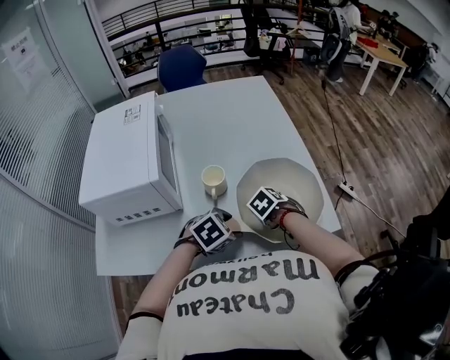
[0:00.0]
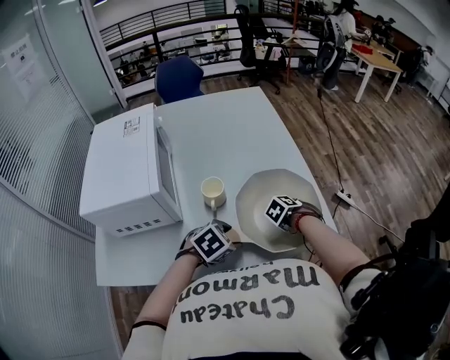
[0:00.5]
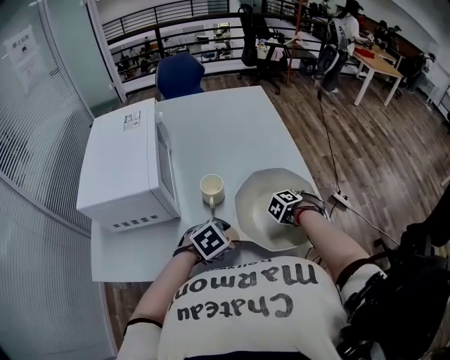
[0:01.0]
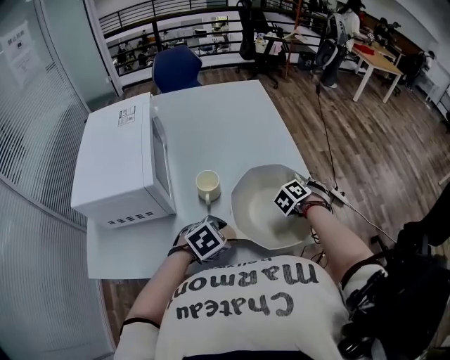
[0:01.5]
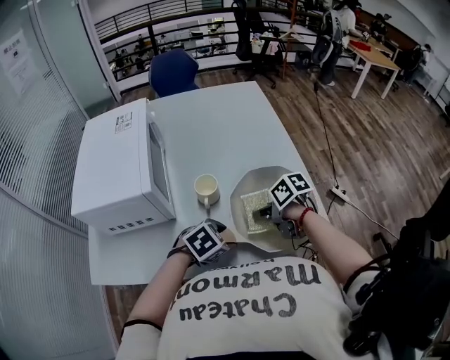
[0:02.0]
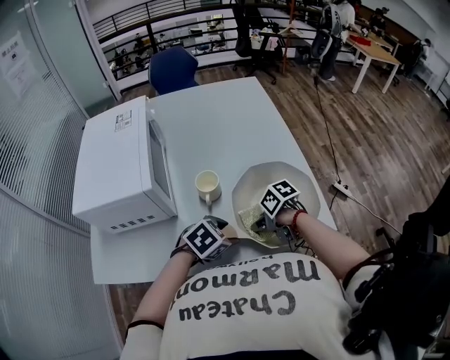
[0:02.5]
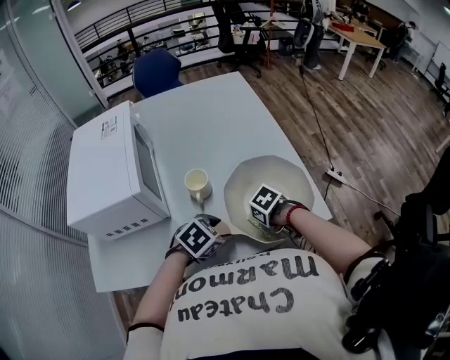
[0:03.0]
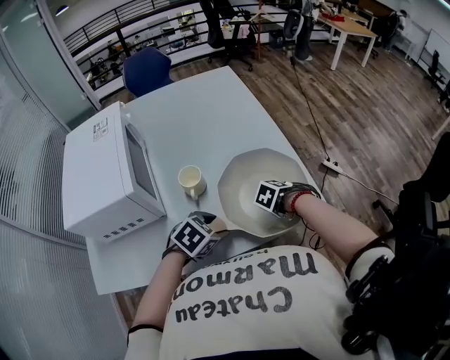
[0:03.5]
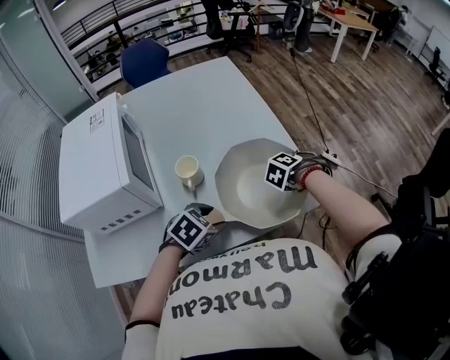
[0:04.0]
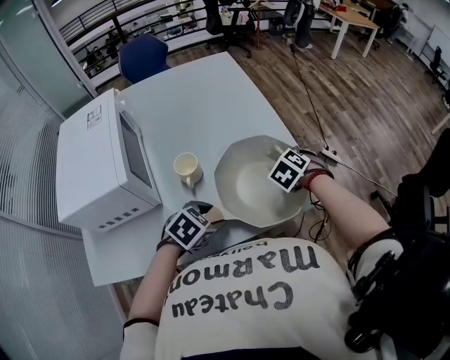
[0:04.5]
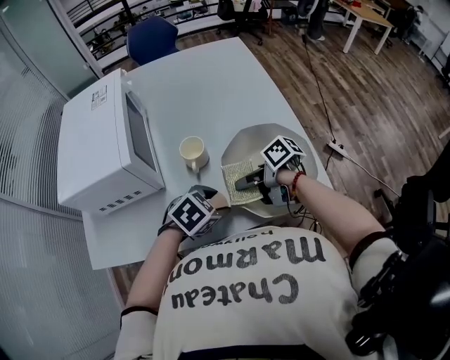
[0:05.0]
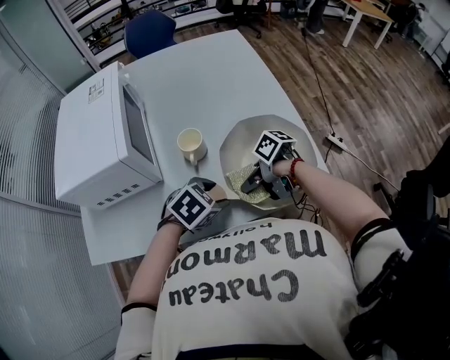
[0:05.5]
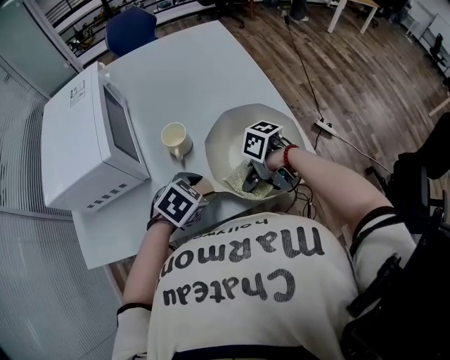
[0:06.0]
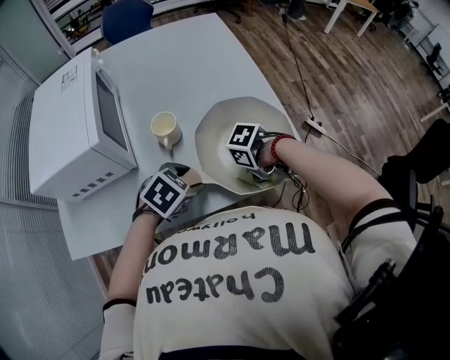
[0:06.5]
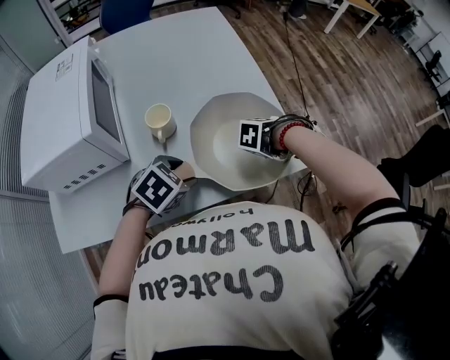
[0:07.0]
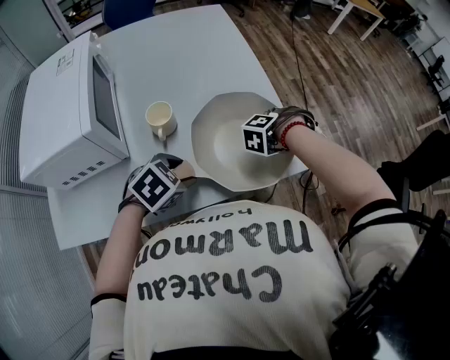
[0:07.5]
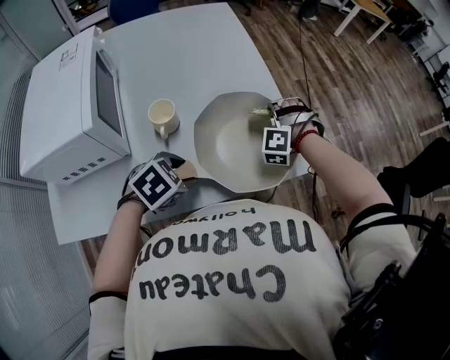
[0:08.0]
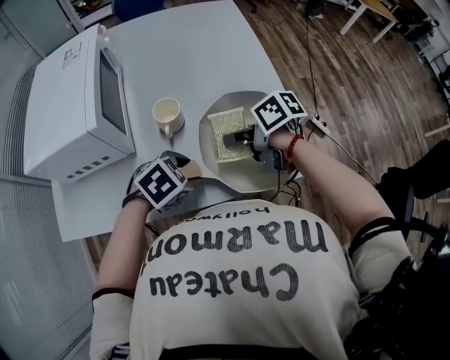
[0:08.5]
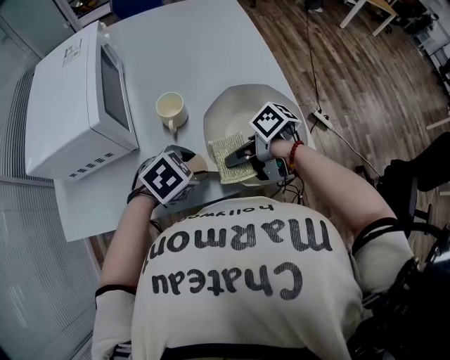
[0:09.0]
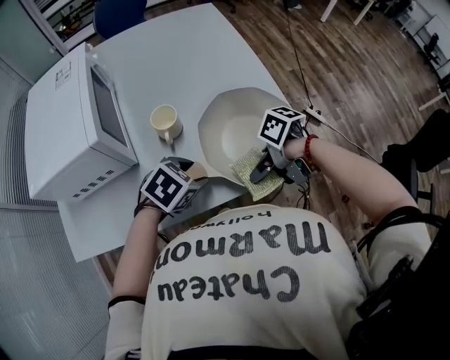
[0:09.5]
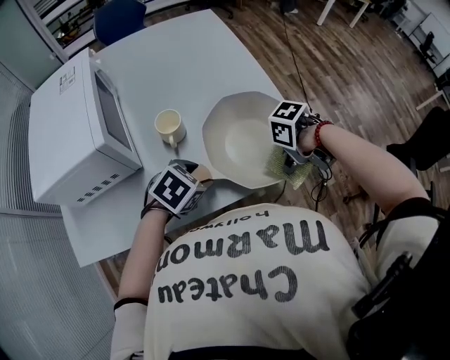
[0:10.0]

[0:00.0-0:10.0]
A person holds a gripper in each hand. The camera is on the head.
0:00.0 to 0:02.0: The right gripper travels upward by about 10 cm, and tips its fingers upward by some 30 degrees.
0:02.0 to 0:04.0: The right gripper ends up approximately 20 cm from where it was, and rotates roughly 80 degrees.
0:04.0 to 0:06.0: The right gripper changes place by approximately 25 cm, and rotates approximately 80 degrees.
0:06.0 to 0:08.0: The right gripper shifts by some 25 cm, and turns by some 130 degrees.
0:08.0 to 0:10.0: The right gripper moves approximately 20 cm, and turns by approximately 110 degrees.

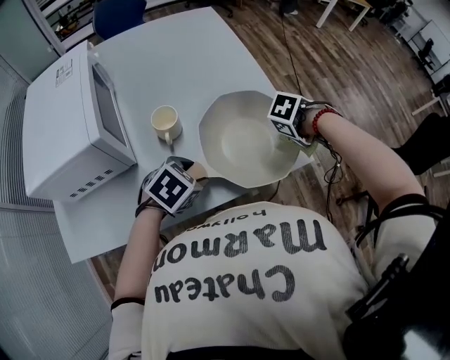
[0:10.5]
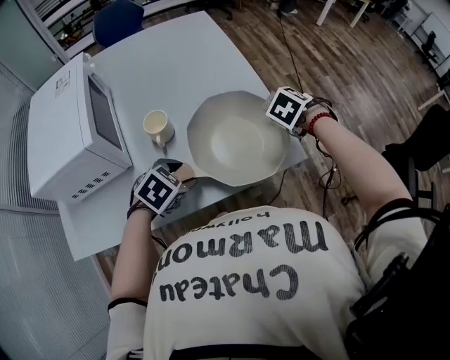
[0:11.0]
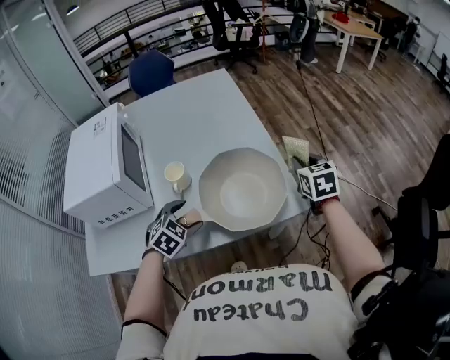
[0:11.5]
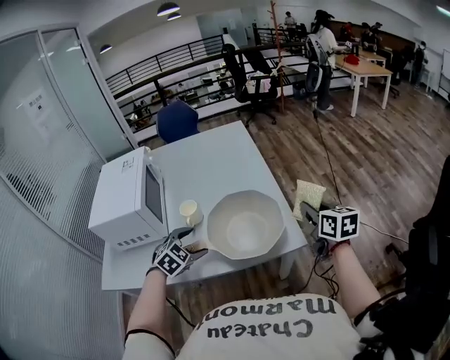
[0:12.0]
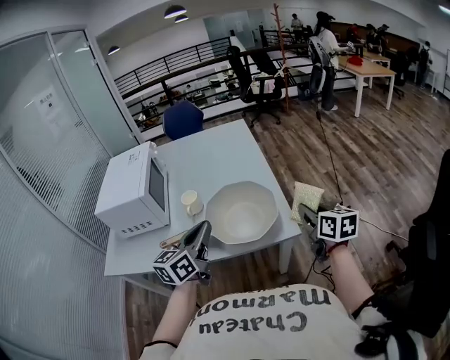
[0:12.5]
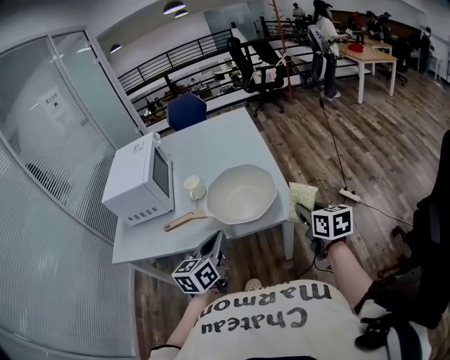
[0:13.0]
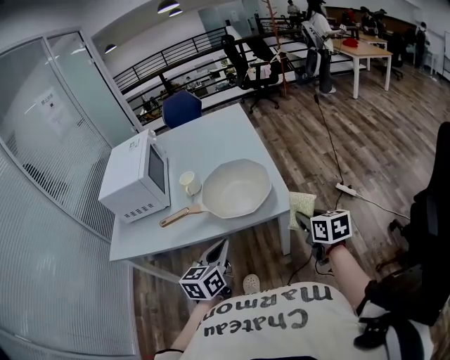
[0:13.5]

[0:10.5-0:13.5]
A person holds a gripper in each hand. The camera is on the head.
0:10.5 to 0:12.0: The right gripper is displaced upward by roughly 15 cm, and points its fingers about 50 degrees further upward; the left gripper is displaced upward by about 5 cm, rotates some 30 degrees, and opens.
0:12.0 to 0:13.5: The left gripper moves backward and to the right, roughly 25 cm, twists some 50 degrees counterclockwise, seen from behind, and closes its fingers; the right gripper shifts some 20 cm backward and downward.

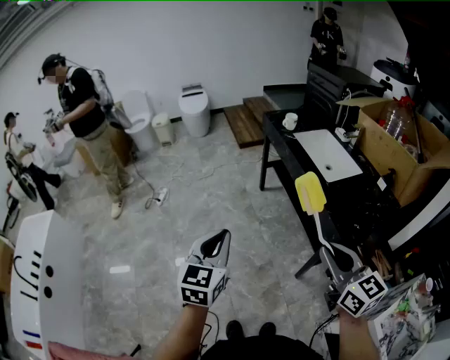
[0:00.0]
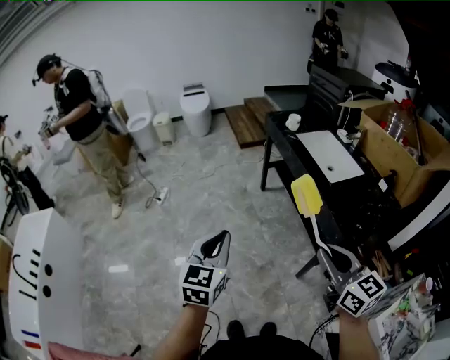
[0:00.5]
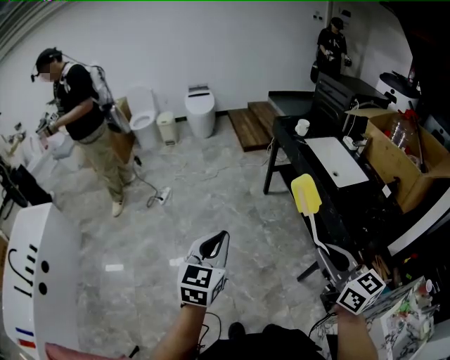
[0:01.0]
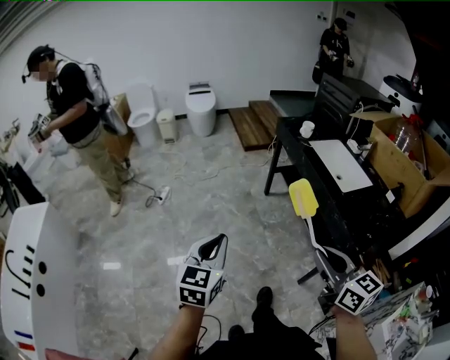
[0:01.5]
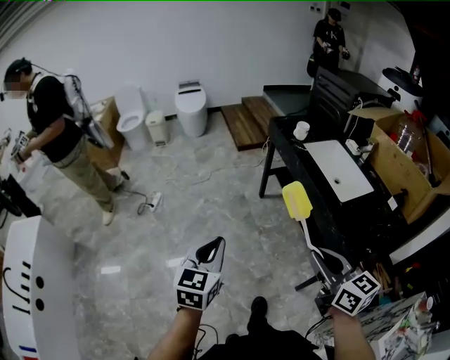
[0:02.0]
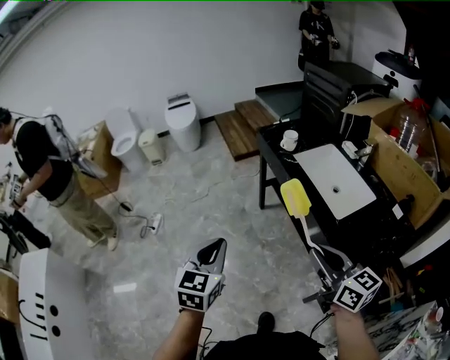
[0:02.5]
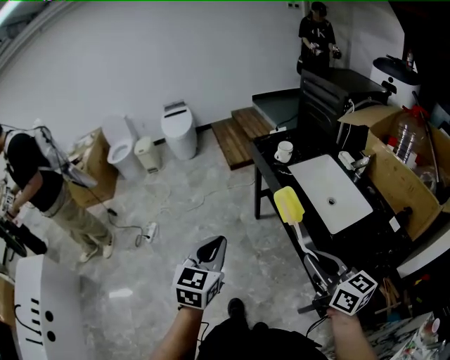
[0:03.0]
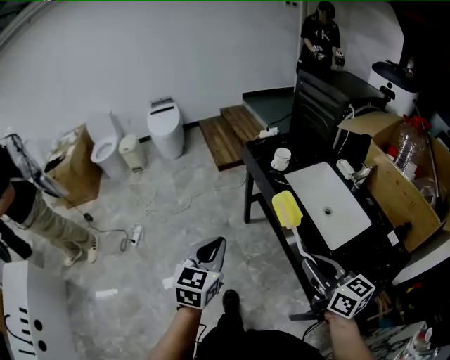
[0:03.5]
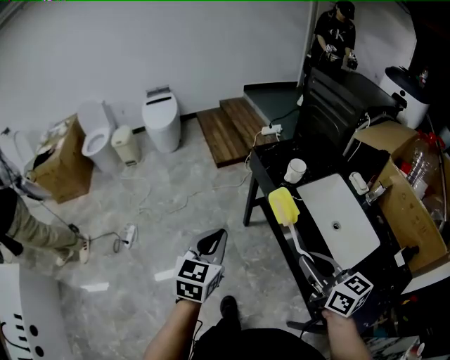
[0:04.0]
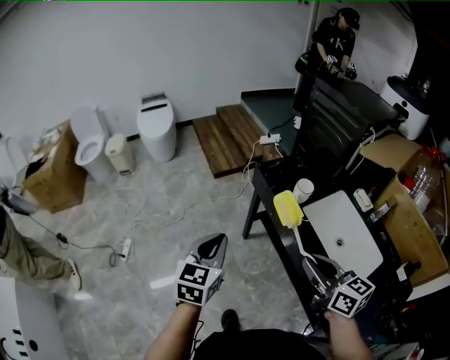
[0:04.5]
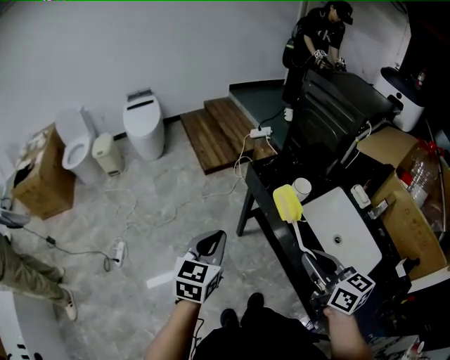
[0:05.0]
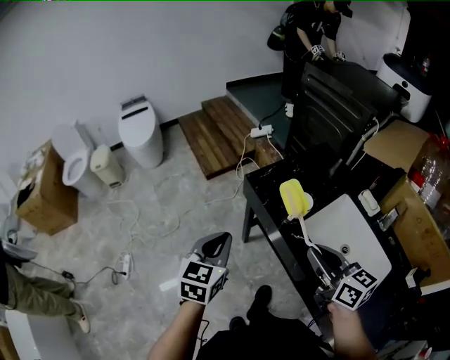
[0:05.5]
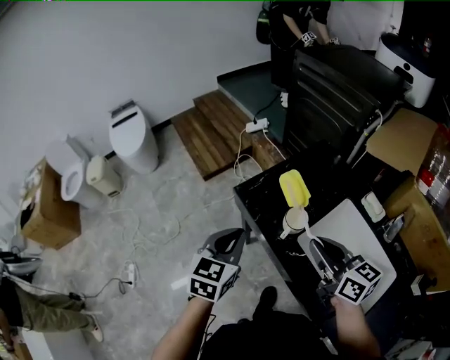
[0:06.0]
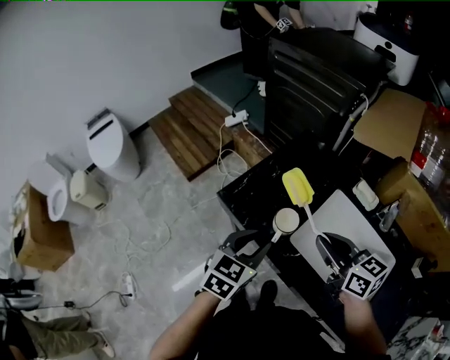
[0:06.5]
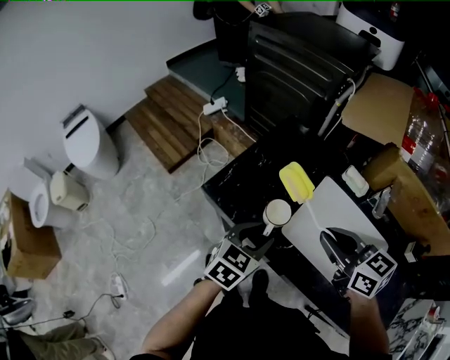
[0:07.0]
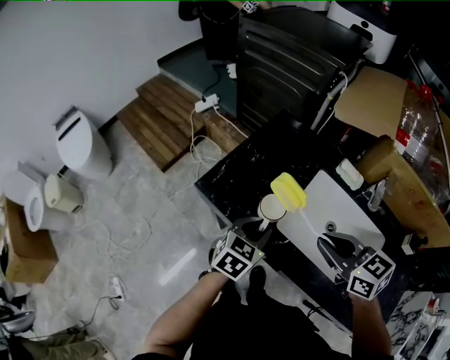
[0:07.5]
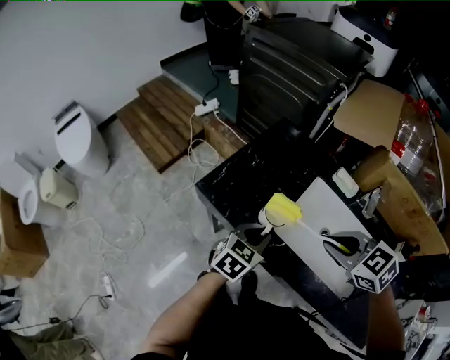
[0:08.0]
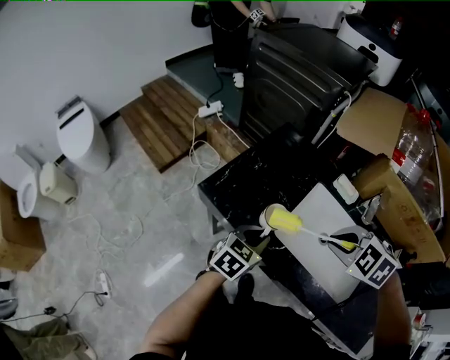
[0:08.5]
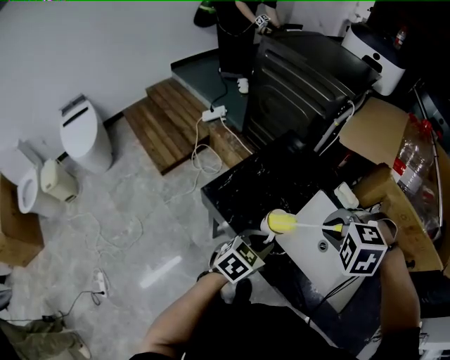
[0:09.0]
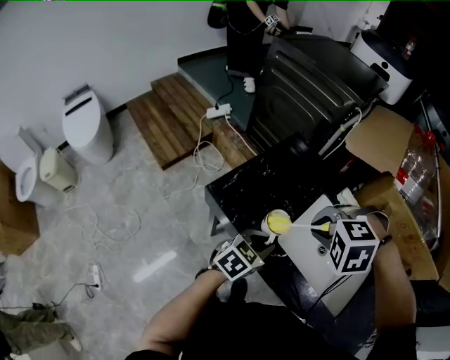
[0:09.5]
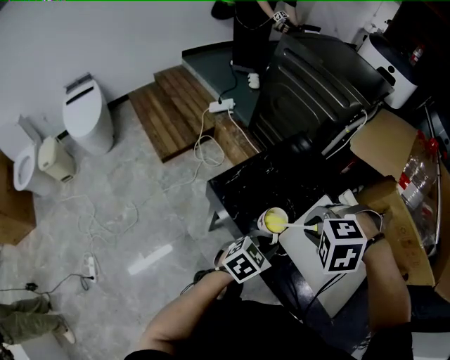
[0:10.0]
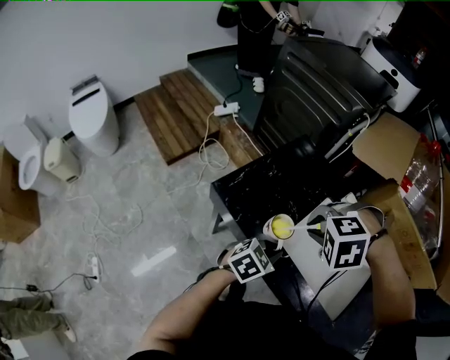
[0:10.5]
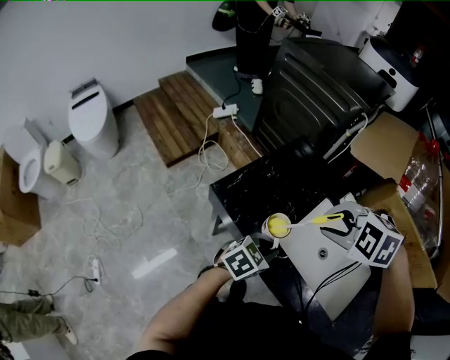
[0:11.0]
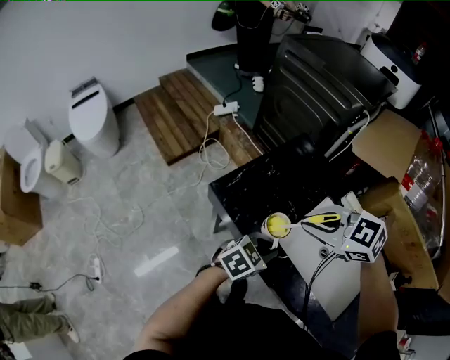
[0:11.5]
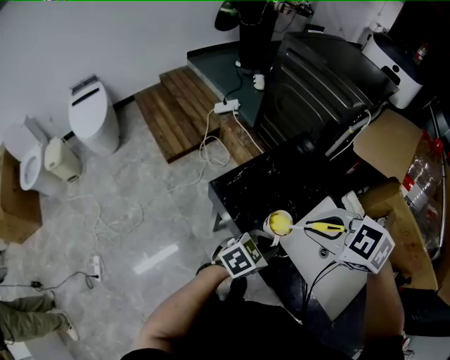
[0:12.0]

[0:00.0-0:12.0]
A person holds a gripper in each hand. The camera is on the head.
0:00.0 to 0:02.0: The grippers both shift forward and to the left by roughly 15 cm.
0:02.0 to 0:04.0: Both grippers travel together forward, some 35 cm.
0:04.0 to 0:06.0: Both grippers travel together forward, roughly 30 cm.
0:06.0 to 0:08.0: The left gripper is displaced to the right and downward by about 20 cm, swivels approximately 40 degrees, and opens, then closes again, while the right gripper goes roughly 10 cm to the right, and angles its fingers downward, by roughly 40 degrees.
0:08.0 to 0:10.0: The right gripper shifts by roughly 10 cm, and rotates around the line of its fingers by roughly 50 degrees, counterclockwise from behind.
0:10.0 to 0:12.0: The right gripper changes its angle by approximately 50 degrees.

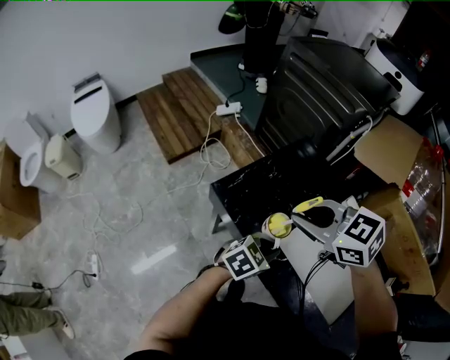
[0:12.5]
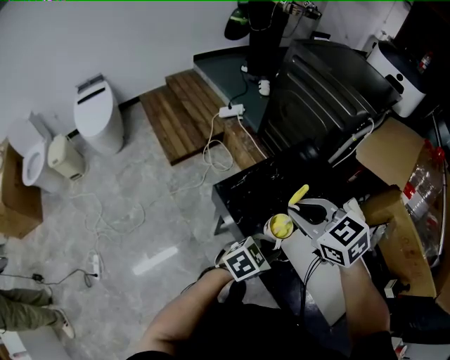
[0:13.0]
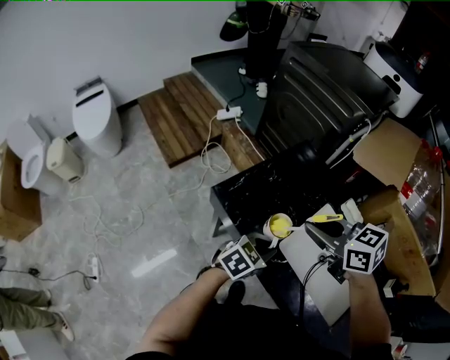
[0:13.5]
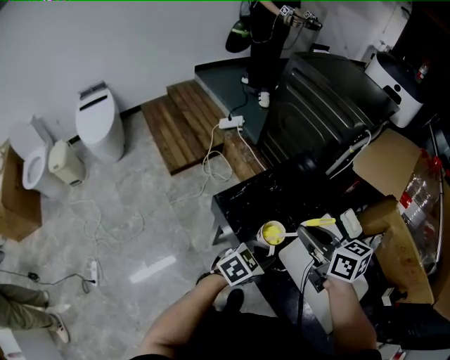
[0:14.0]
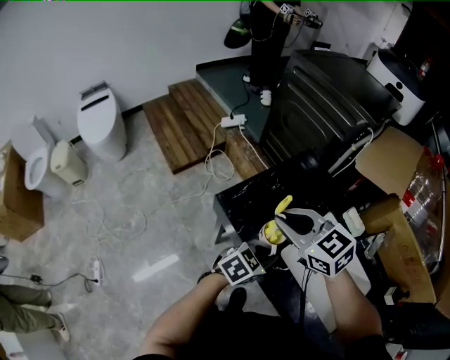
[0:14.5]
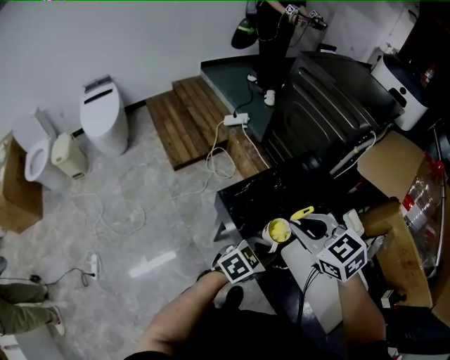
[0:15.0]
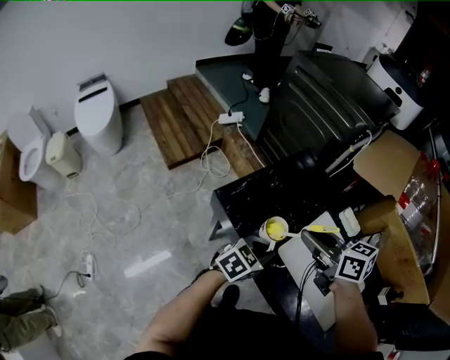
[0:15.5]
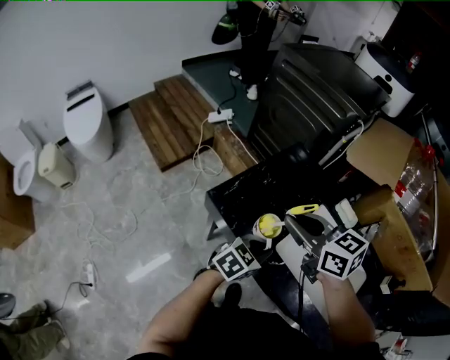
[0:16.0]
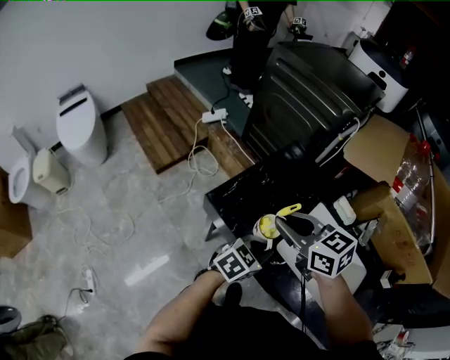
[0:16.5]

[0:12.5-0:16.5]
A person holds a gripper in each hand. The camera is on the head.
0:14.5 to 0:16.5: The right gripper travels to the right and back again, some 10 cm each way.
